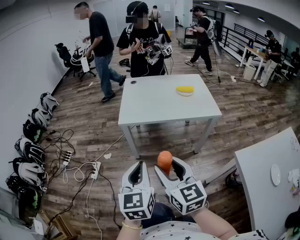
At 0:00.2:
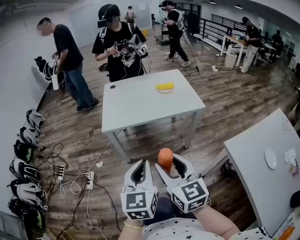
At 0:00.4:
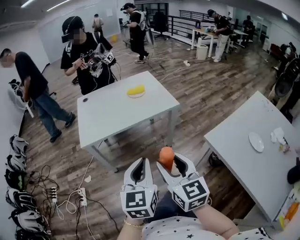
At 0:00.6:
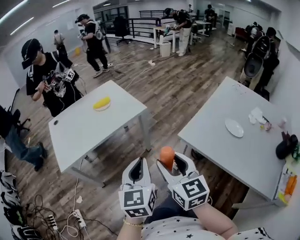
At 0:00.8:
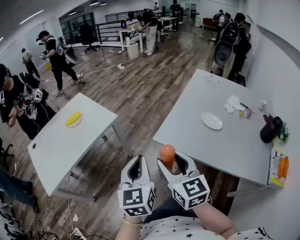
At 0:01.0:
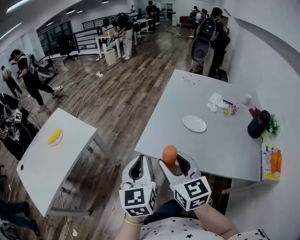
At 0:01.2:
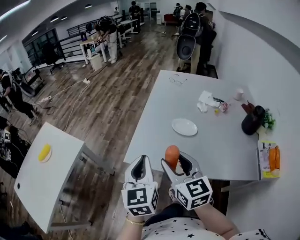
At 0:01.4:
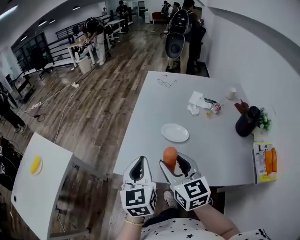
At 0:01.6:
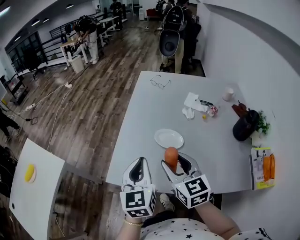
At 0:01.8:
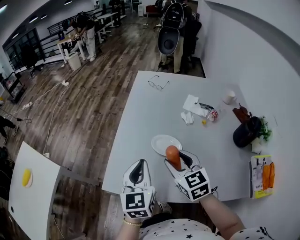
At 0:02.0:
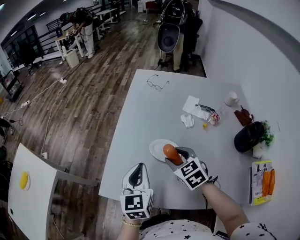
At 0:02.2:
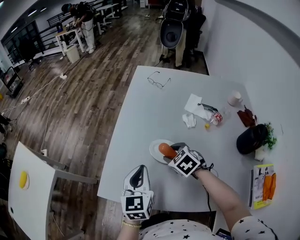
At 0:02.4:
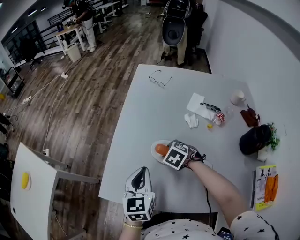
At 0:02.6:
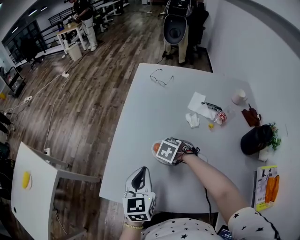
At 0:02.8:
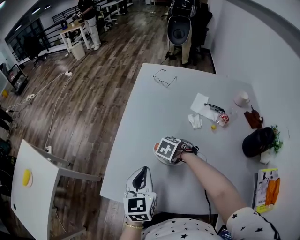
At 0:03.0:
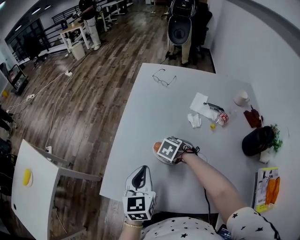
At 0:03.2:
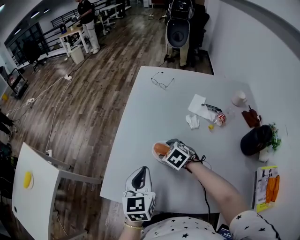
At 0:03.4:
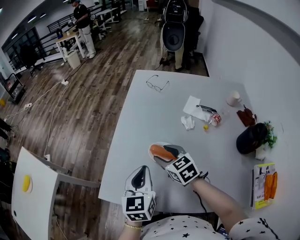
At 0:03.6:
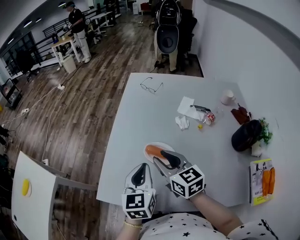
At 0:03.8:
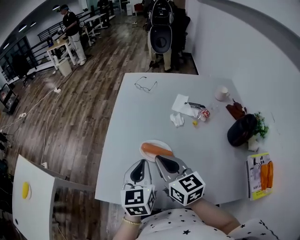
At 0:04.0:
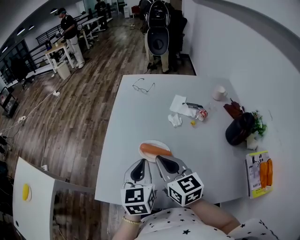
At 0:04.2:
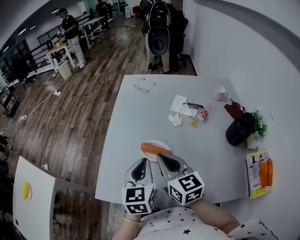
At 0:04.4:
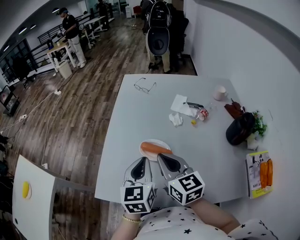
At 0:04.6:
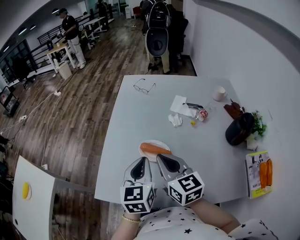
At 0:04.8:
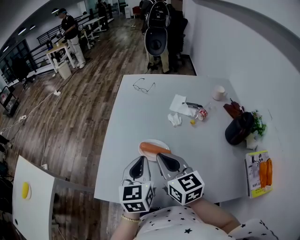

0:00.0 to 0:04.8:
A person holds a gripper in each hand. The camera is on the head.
0:00.0 to 0:01.6: Both grippers are carried about 70 cm. The right gripper swivels approximately 70 degrees; the left gripper turns by approximately 70 degrees.
0:01.6 to 0:03.2: The left gripper shifts by about 15 cm, while the right gripper goes approximately 20 cm downward, and tips its fingers downward by roughly 40 degrees.
0:03.2 to 0:04.8: The right gripper goes roughly 25 cm upward and backward, angles its fingers upward, by about 50 degrees, and closes, while the left gripper moves to the right, about 5 cm.

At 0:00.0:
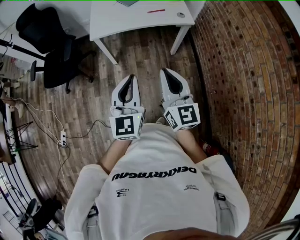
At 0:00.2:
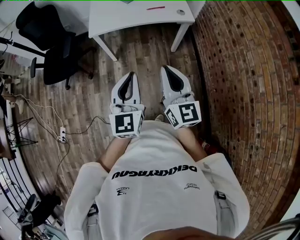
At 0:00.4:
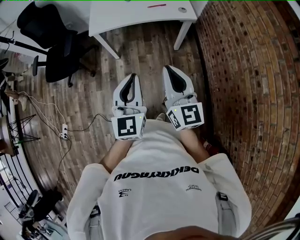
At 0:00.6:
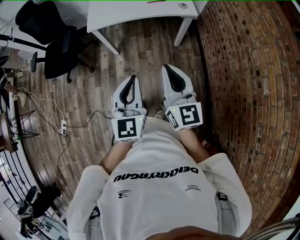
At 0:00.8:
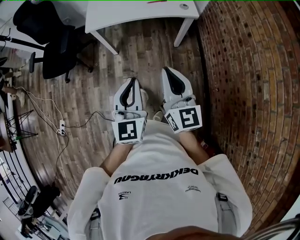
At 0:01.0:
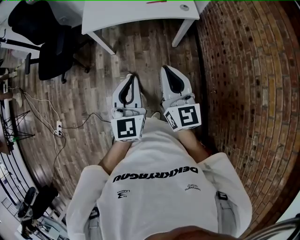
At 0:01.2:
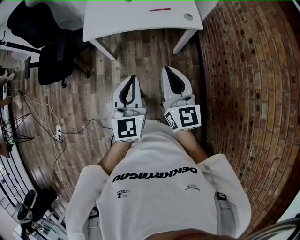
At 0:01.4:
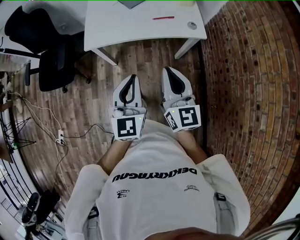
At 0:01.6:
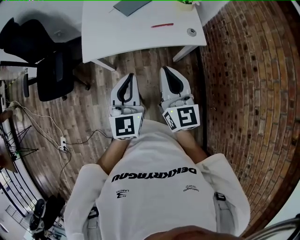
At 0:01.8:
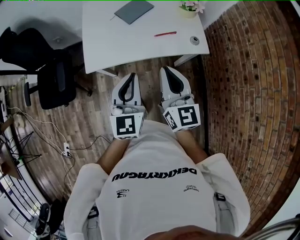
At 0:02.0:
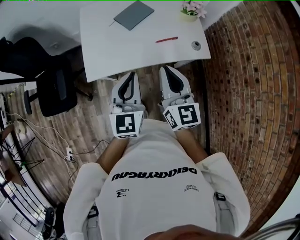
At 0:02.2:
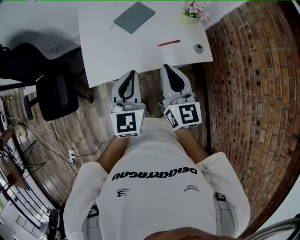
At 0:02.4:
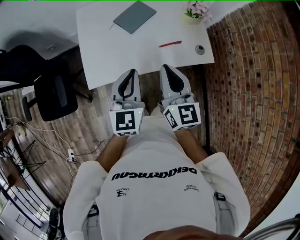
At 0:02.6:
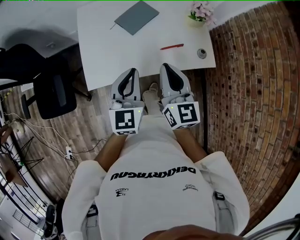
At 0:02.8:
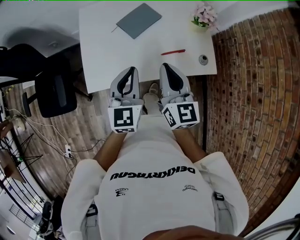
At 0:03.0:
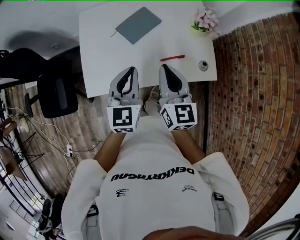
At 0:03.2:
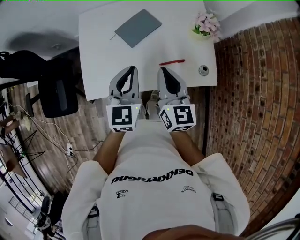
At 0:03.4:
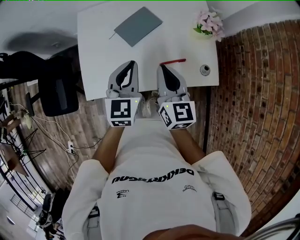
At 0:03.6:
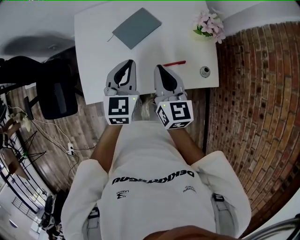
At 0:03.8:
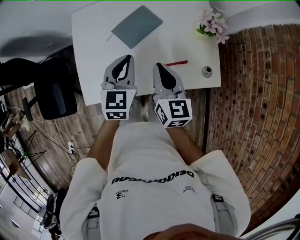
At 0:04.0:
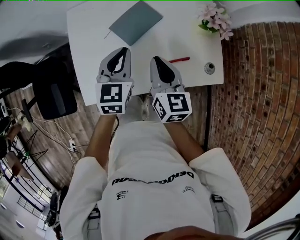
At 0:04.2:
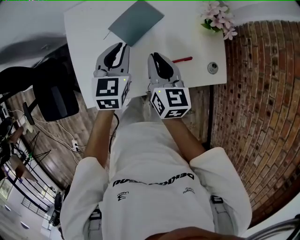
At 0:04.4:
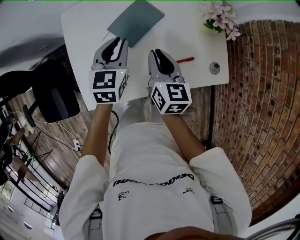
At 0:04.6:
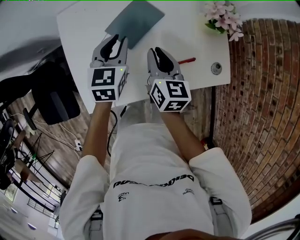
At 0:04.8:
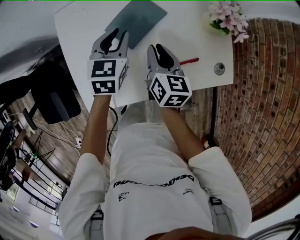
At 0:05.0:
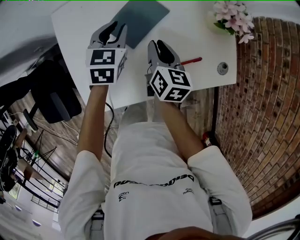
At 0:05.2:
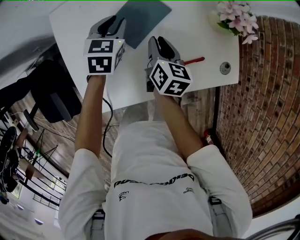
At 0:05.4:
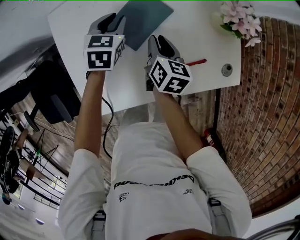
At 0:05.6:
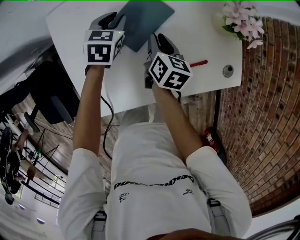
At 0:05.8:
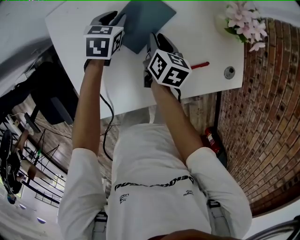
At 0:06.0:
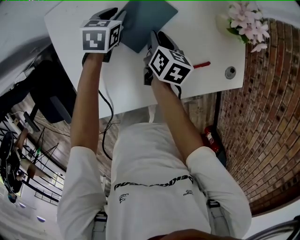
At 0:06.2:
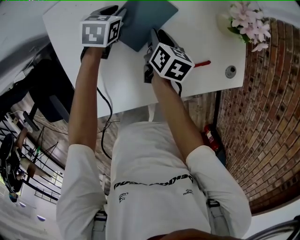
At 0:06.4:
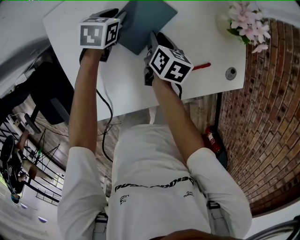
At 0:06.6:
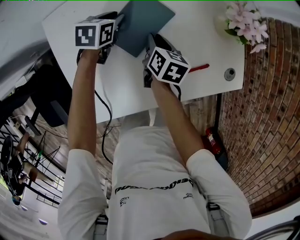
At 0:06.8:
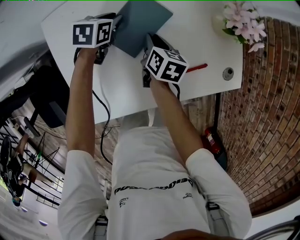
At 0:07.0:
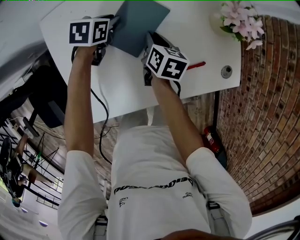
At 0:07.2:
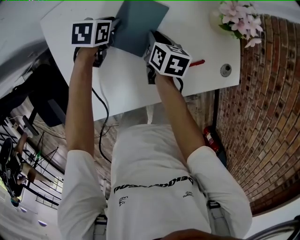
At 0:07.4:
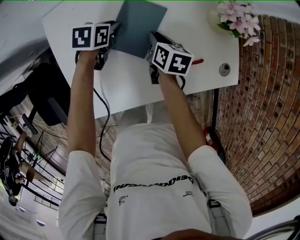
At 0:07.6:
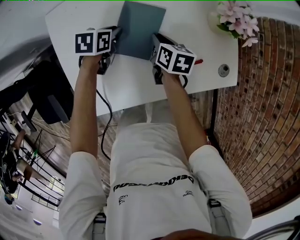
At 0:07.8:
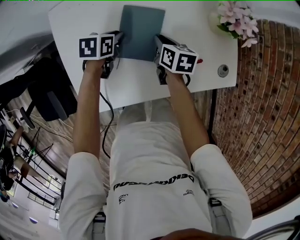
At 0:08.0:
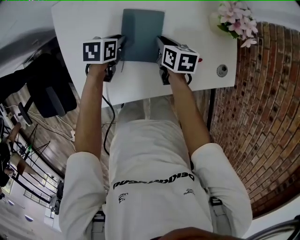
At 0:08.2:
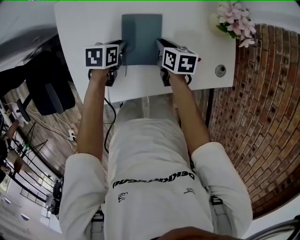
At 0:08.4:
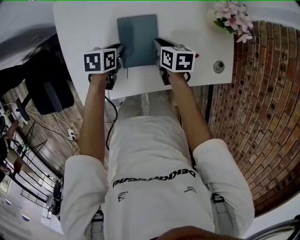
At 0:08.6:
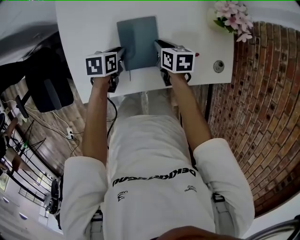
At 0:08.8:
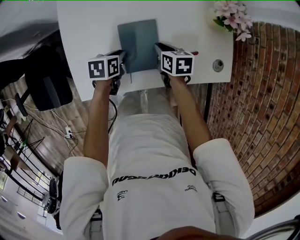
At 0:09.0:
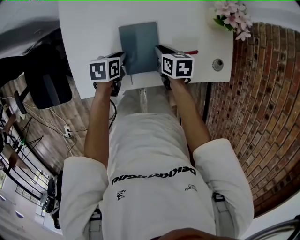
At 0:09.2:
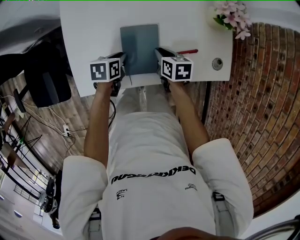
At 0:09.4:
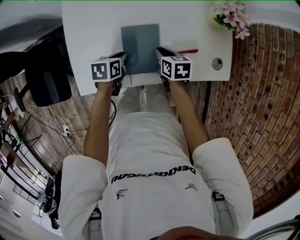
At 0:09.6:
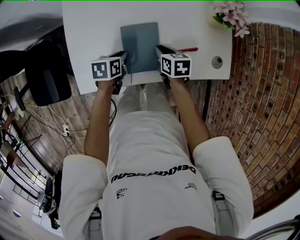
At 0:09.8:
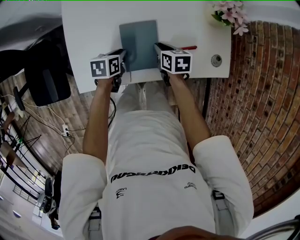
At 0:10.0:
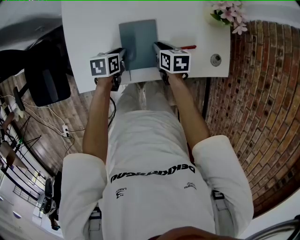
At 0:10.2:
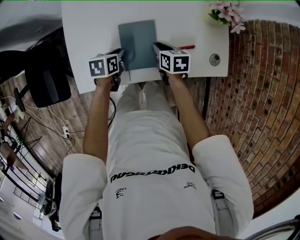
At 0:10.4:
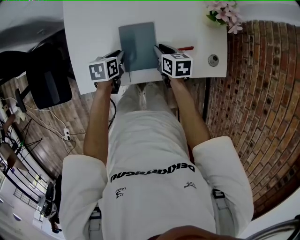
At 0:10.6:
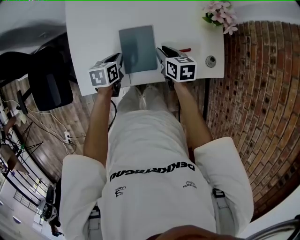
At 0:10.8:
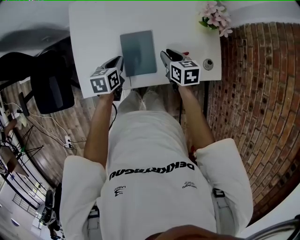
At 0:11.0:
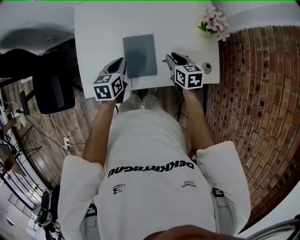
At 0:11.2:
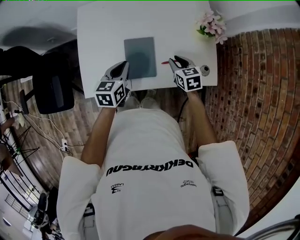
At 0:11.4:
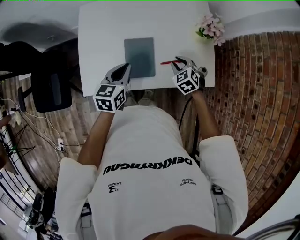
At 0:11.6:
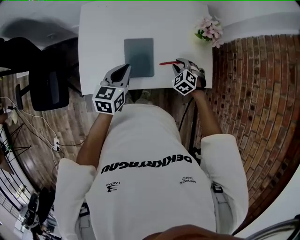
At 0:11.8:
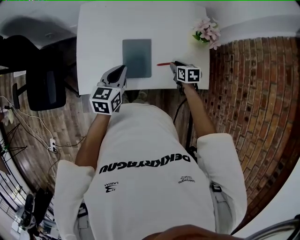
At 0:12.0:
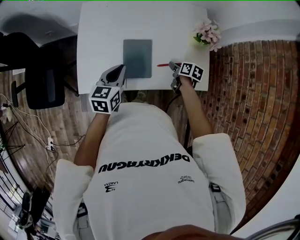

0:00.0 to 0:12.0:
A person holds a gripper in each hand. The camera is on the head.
0:00.0 to 0:01.6: Both grippers move forward, some 30 cm.
0:01.6 to 0:03.0: Both grippers travel together forward, roughly 30 cm.
0:03.0 to 0:04.4: The two grippers go roughly 20 cm forward and downward.
0:04.4 to 0:06.0: Both grippers travel together downward and forward, roughly 20 cm. The left gripper rotates roughly 20 degrees; the right gripper rotates some 30 degrees.
0:06.0 to 0:07.6: The left gripper travels backward by some 5 cm, and swivels some 20 degrees.
0:07.6 to 0:09.0: The left gripper is displaced backward by about 20 cm. Meanwhile the right gripper travels backward by roughly 10 cm, and rotates some 20 degrees.
0:09.0 to 0:10.4: The grippers make only small movements.
0:10.4 to 0:12.0: The left gripper goes about 20 cm upward, and swivels some 30 degrees, while the right gripper is displaced to the right by approximately 10 cm, and rotates approximately 20 degrees.

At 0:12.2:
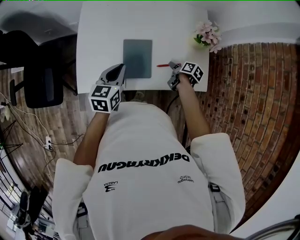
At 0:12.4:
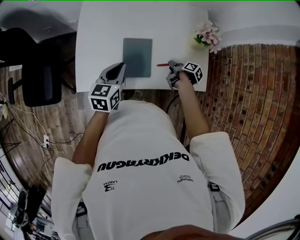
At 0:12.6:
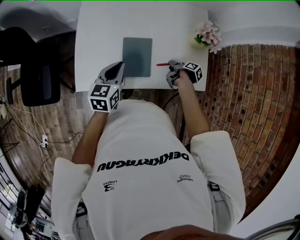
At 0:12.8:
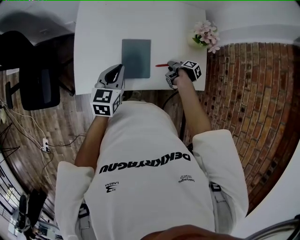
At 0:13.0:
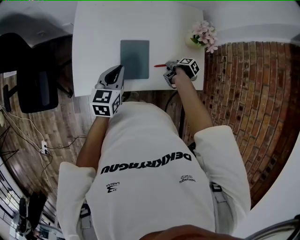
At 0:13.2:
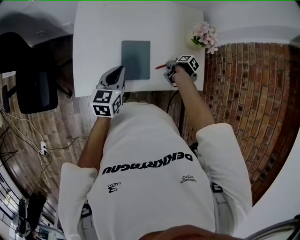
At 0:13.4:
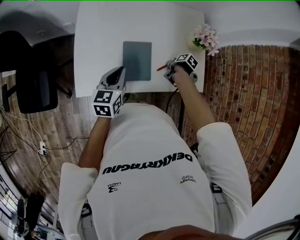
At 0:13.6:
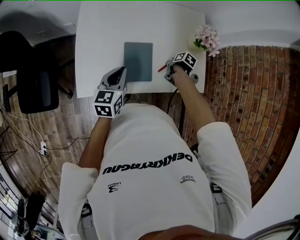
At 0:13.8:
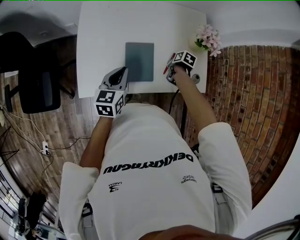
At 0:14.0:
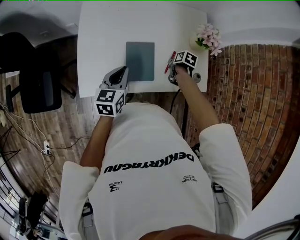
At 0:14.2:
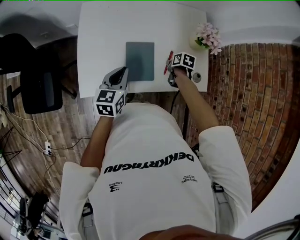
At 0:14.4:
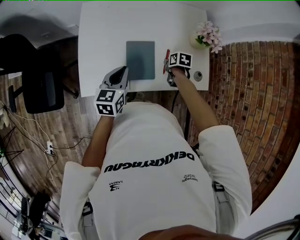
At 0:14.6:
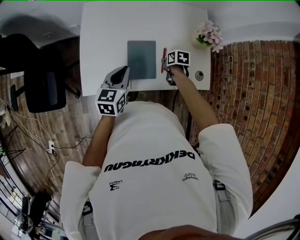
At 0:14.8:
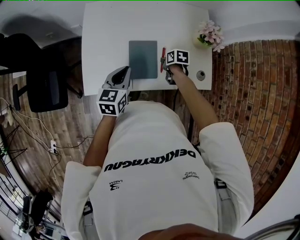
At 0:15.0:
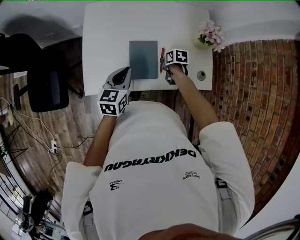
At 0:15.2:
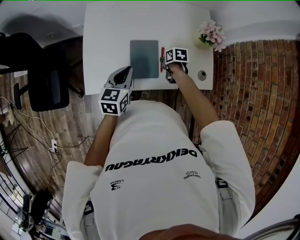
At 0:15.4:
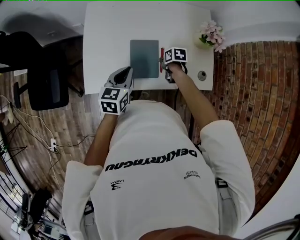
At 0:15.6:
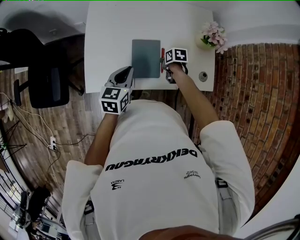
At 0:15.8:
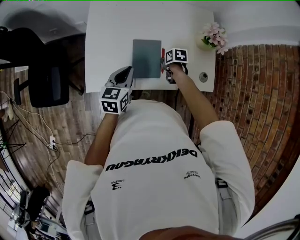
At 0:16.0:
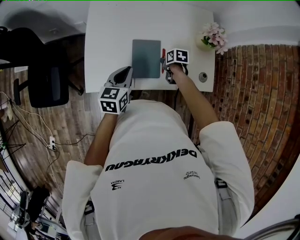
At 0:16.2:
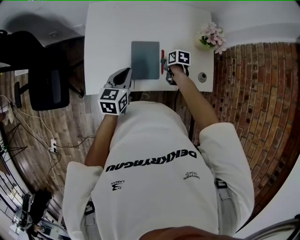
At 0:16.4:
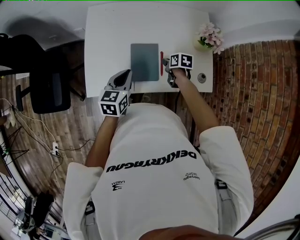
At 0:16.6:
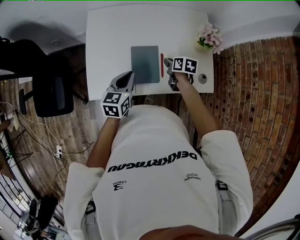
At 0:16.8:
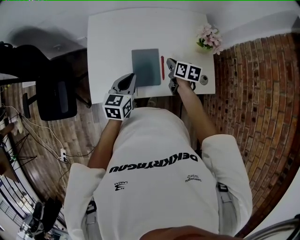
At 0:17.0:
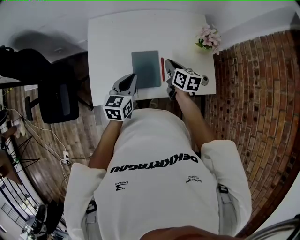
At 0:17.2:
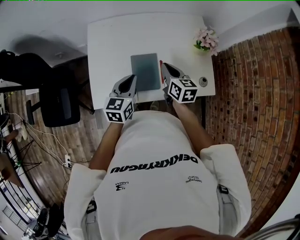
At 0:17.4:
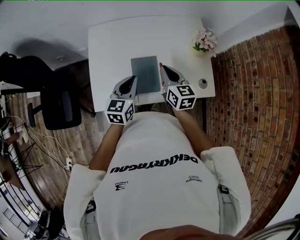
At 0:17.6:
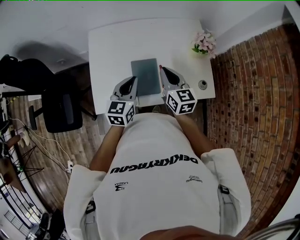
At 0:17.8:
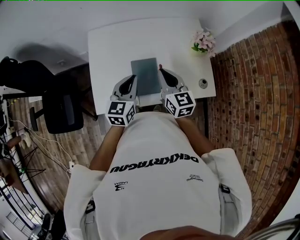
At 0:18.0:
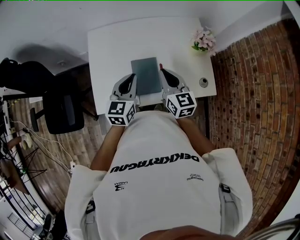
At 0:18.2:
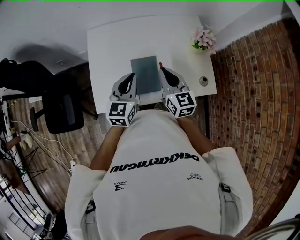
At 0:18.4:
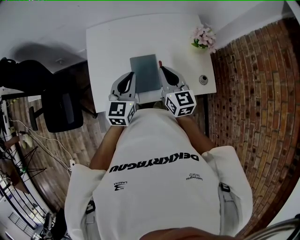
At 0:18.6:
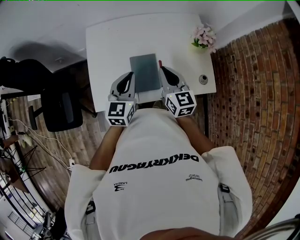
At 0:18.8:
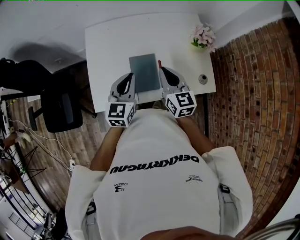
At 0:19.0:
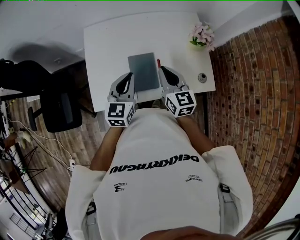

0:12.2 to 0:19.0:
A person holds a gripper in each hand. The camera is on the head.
0:12.2 to 0:13.6: The right gripper changes its angle by approximately 20 degrees.
0:13.6 to 0:15.0: The right gripper shifts by roughly 10 cm, and turns by about 30 degrees.
0:15.0 to 0:16.2: The grippers stay close to where they were, moving slightly.
0:16.2 to 0:17.6: The right gripper is displaced upward by roughly 25 cm, and tilts its fingers approximately 50 degrees upward, while the left gripper travels upward by about 5 cm.
0:17.6 to 0:19.0: The grippers move only a little.
